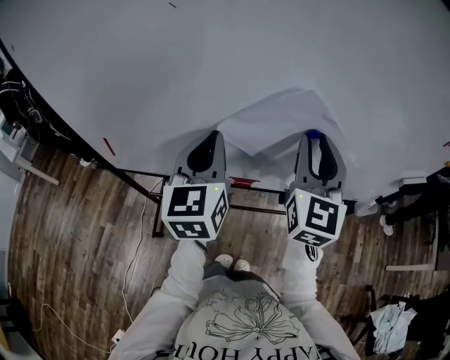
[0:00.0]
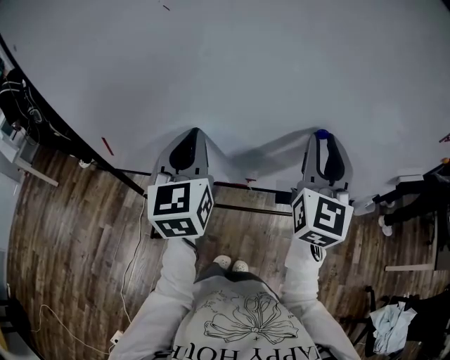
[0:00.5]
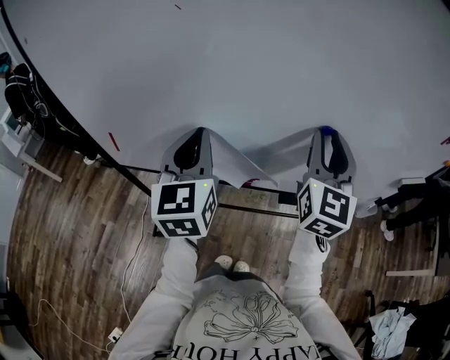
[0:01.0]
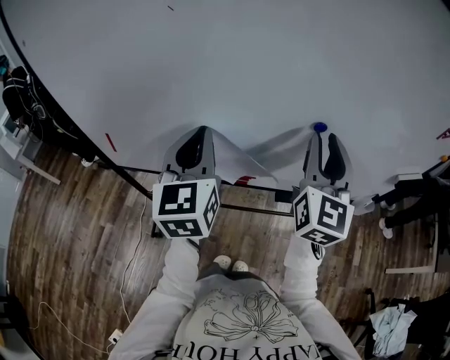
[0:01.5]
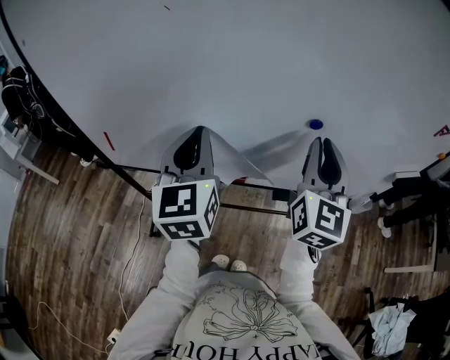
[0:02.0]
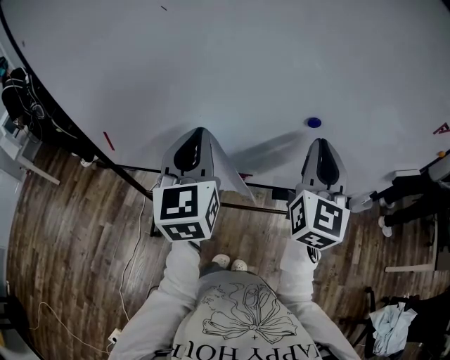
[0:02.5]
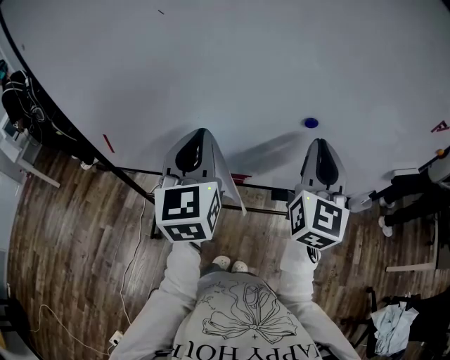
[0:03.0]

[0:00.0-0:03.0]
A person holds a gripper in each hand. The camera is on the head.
0:00.0 to 0:01.5: The grippers move only a little.
0:01.5 to 0:03.0: The right gripper closes up.

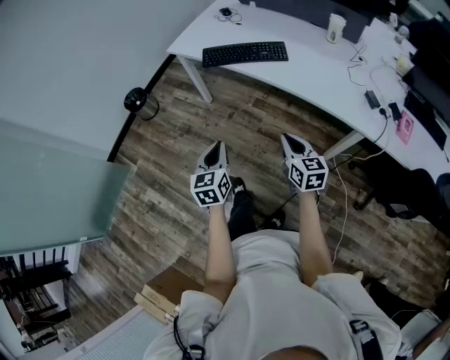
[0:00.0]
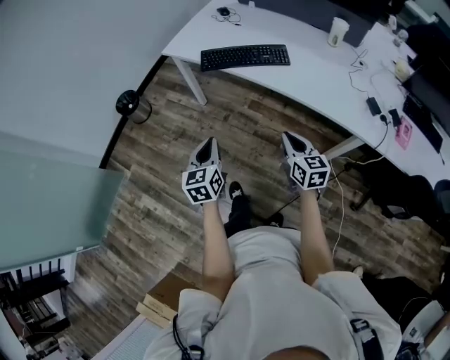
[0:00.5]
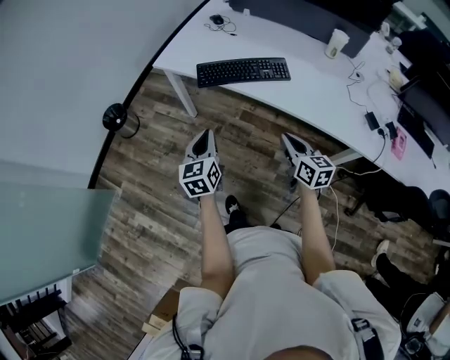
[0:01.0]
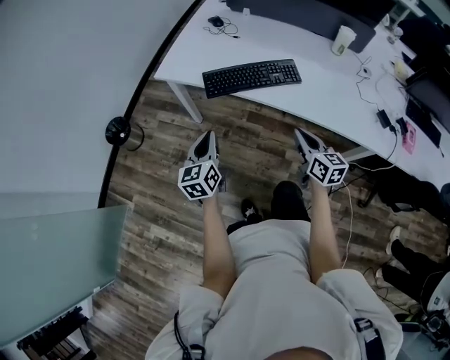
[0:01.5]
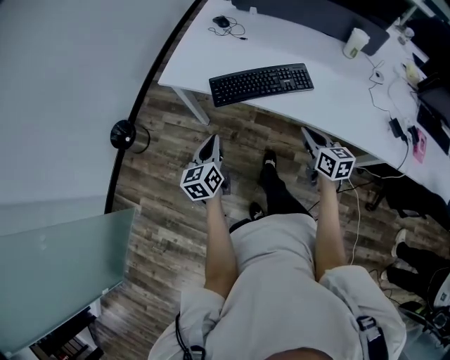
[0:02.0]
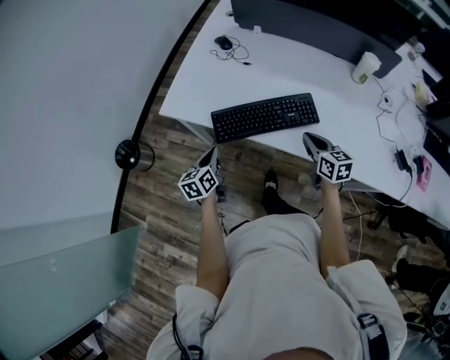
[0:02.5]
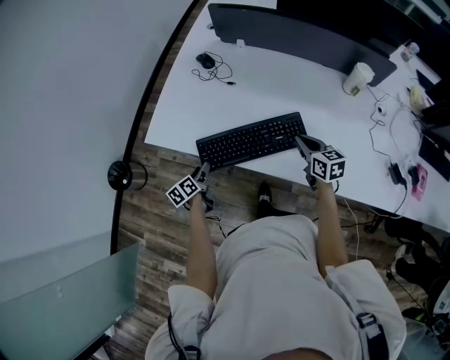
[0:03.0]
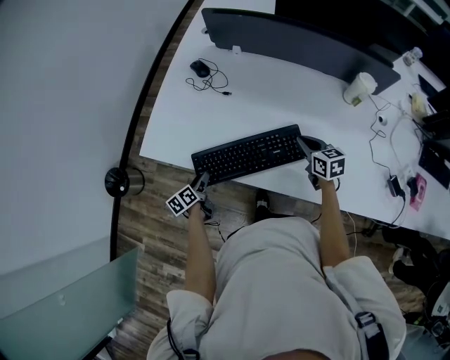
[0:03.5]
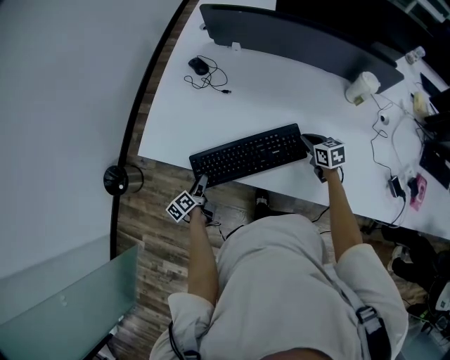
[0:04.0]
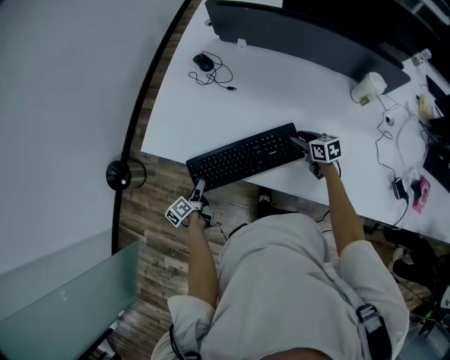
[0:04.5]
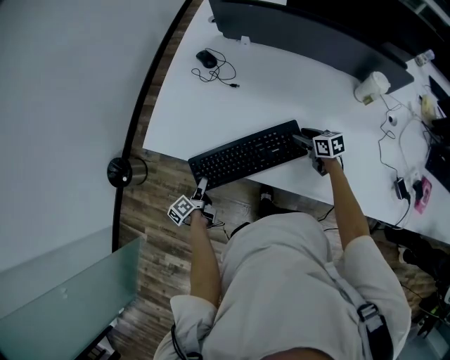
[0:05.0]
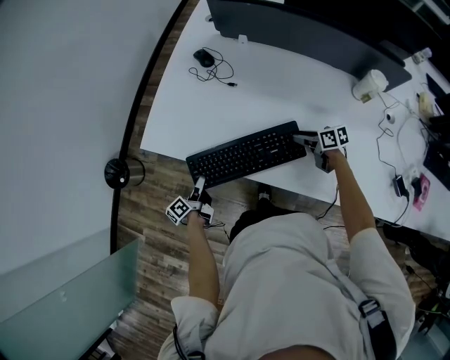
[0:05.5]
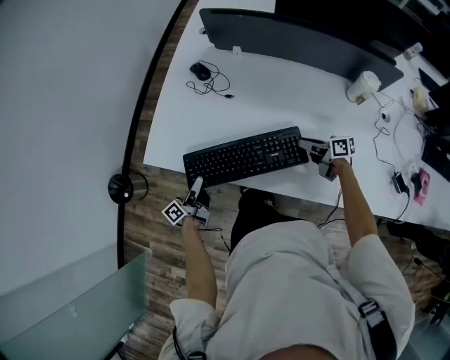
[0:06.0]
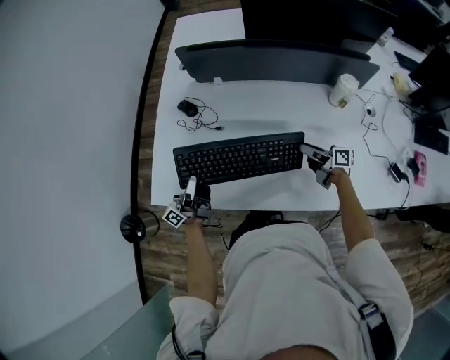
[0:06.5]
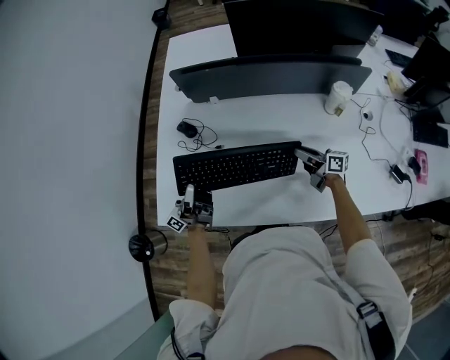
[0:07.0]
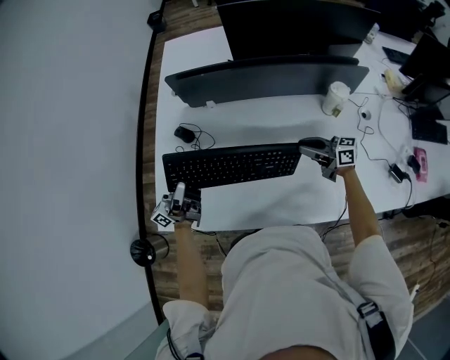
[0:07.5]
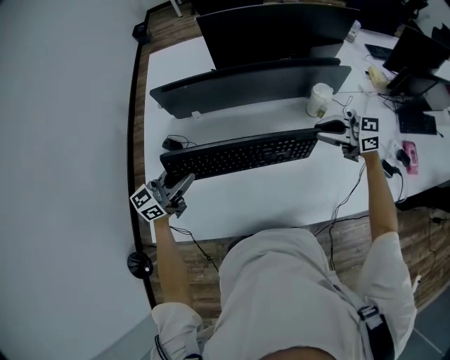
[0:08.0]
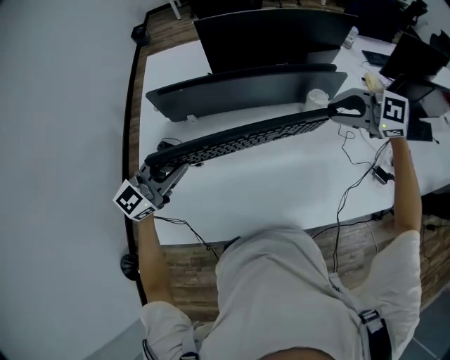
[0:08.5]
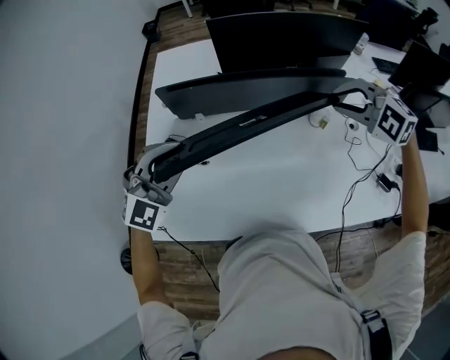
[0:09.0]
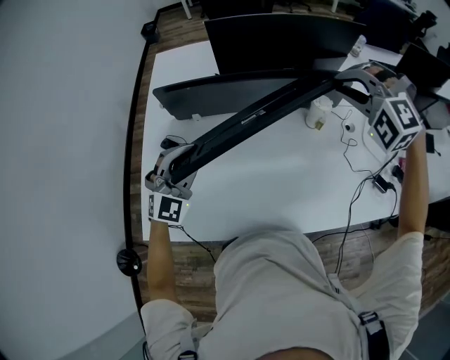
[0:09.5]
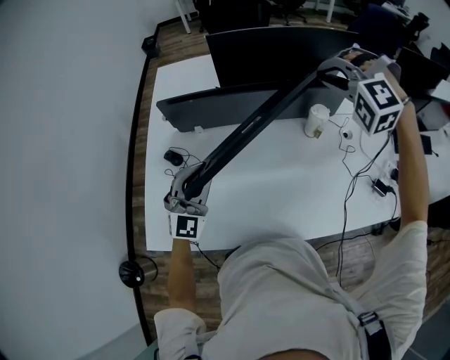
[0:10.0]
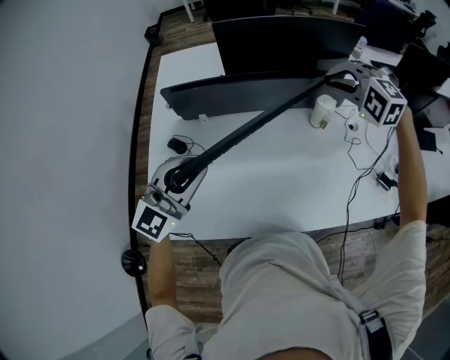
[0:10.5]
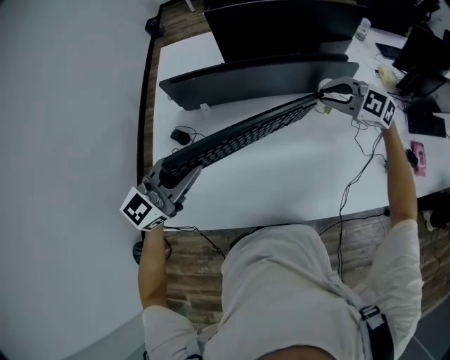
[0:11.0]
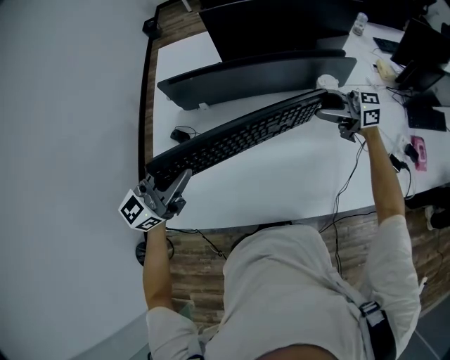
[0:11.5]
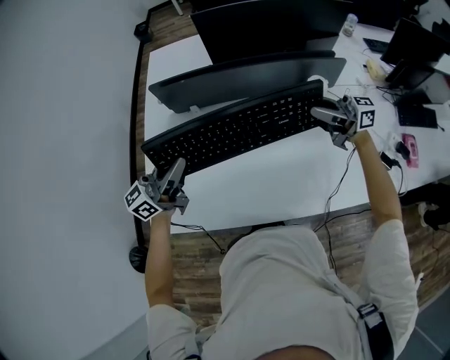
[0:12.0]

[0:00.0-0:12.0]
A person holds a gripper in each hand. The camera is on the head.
0:00.0 to 0:02.0: The grippers both shift forward by roughly 35 cm.
0:02.0 to 0:04.0: The right gripper is displaced forward, to the right and downward by about 35 cm, and rotates about 20 degrees. The left gripper shifts about 30 cm forward and downward, changes its angle by some 40 degrees, and opens.
0:04.0 to 0:06.0: The right gripper swivels some 40 degrees, and opens its fingers; the left gripper heads upward, covering approximately 10 cm, tilts its fingers some 30 degrees upward, and closes its fingers.
0:06.0 to 0:08.0: The left gripper changes place by some 35 cm, and rotates some 70 degrees; the right gripper heads upward, covering about 25 cm, and twists about 50 degrees counterclockwise, seen from behind.
0:08.0 to 0:10.0: The left gripper shifts by some 10 cm, and rolls clockwise, seen from behind, by some 60 degrees, while the right gripper travels upward by roughly 20 cm, and tilts its fingers some 30 degrees downward.
0:10.0 to 0:12.0: The right gripper moves downward, approximately 15 cm, tilts its fingers some 60 degrees upward, and opens and closes again. Meanwhile the left gripper shifts by roughly 5 cm, and twists some 60 degrees counterclockwise, seen from behind.

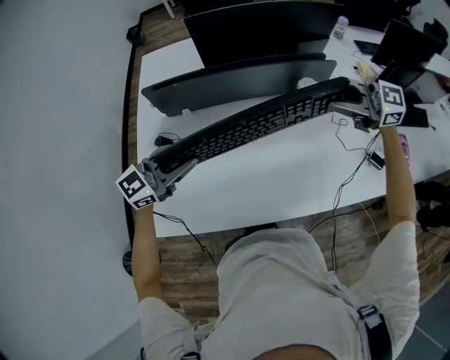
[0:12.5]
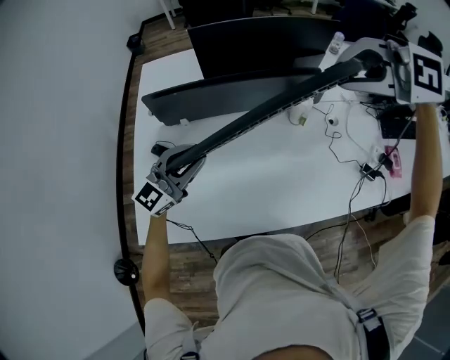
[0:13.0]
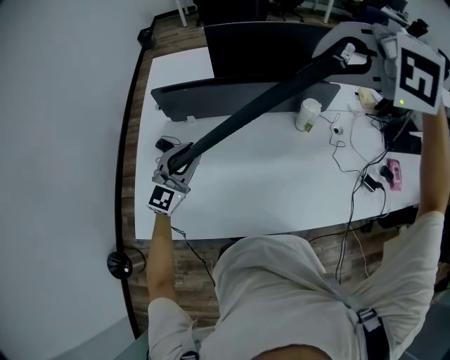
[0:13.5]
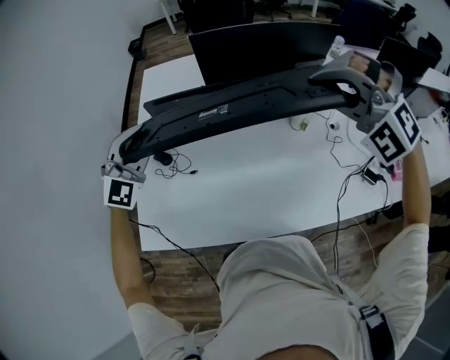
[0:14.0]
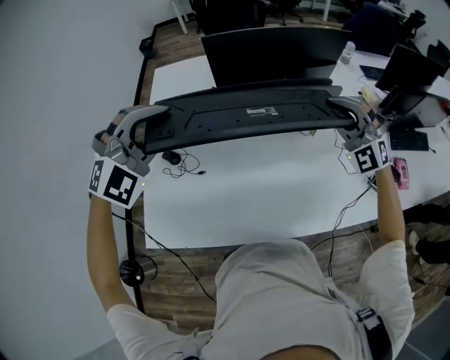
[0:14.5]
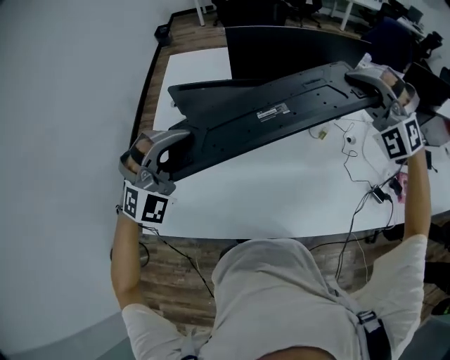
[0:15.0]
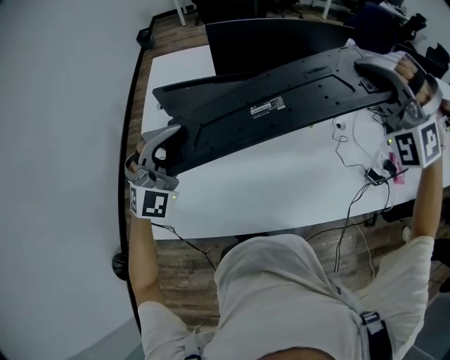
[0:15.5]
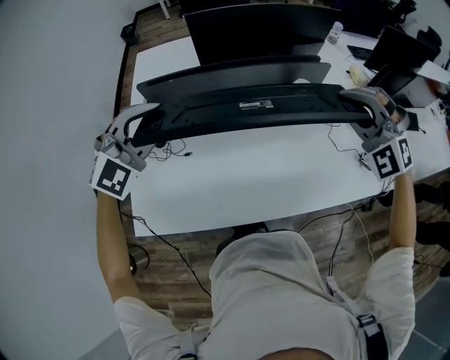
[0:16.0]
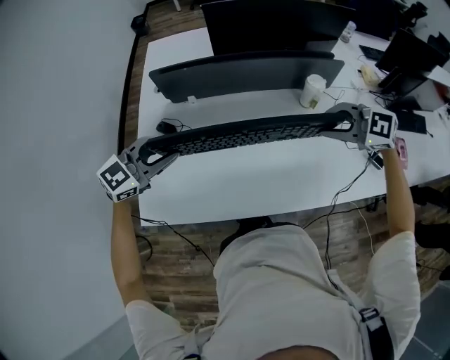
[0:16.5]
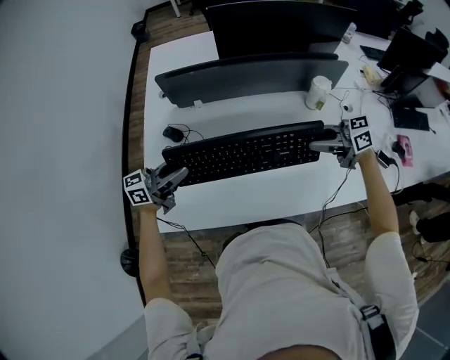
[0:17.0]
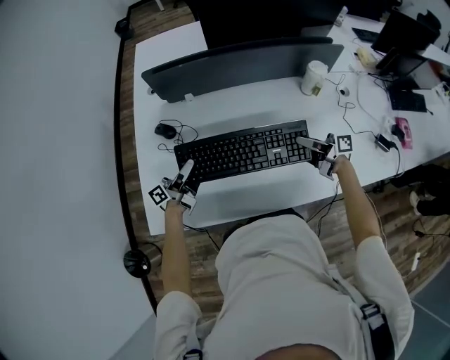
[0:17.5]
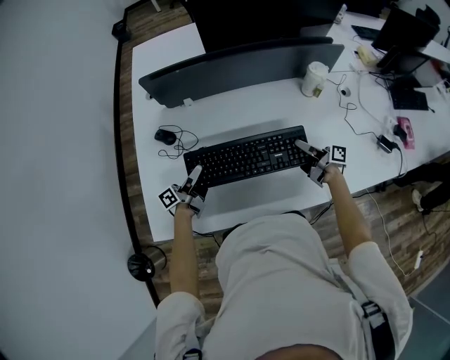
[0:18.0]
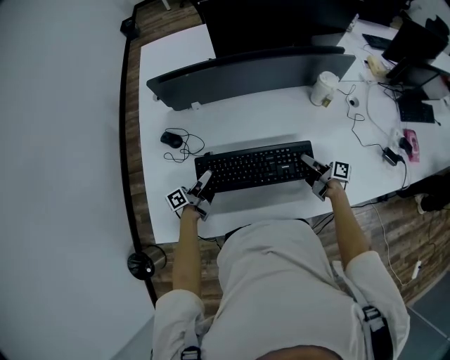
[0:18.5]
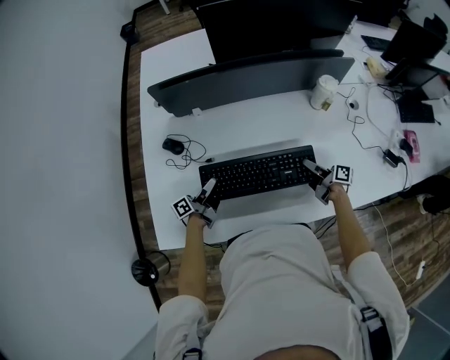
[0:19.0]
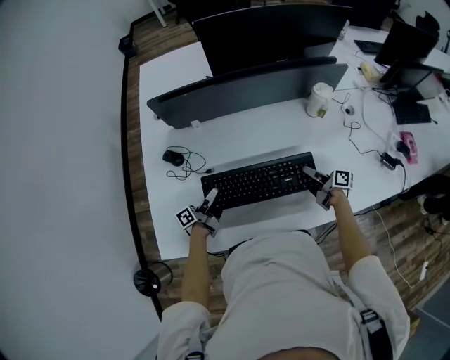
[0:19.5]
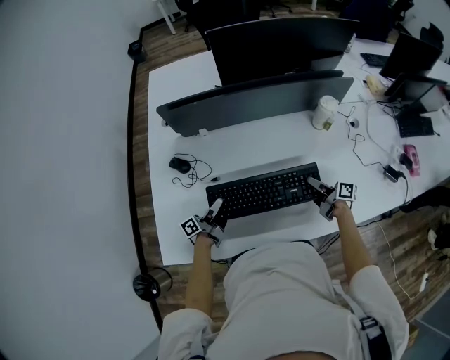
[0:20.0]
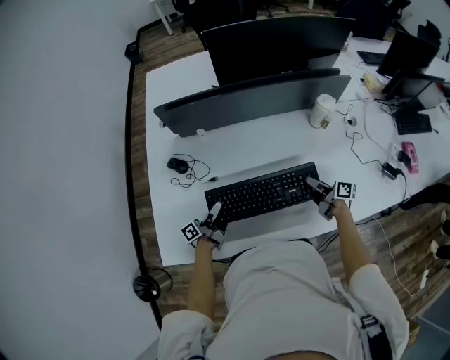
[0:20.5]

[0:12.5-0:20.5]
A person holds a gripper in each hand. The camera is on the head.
0:12.5 to 0:14.5: The left gripper travels upward by some 15 cm, and rolls clockwise, seen from behind, by approximately 60 degrees, while the right gripper moves about 15 cm upward and comes back, and swivels some 80 degrees.
0:14.5 to 0:16.5: The right gripper changes place by approximately 15 cm, and turns by about 60 degrees. Meanwhile the left gripper heads downward, covering about 15 cm, and twists some 50 degrees counterclockwise, seen from behind.
0:16.5 to 0:18.5: The grippers both shift downward by roughly 30 cm. The right gripper twists some 100 degrees clockwise, seen from behind. The left gripper rolls counterclockwise, seen from behind, by roughly 90 degrees.
0:18.5 to 0:20.5: There are only small adjustments of the grippers.

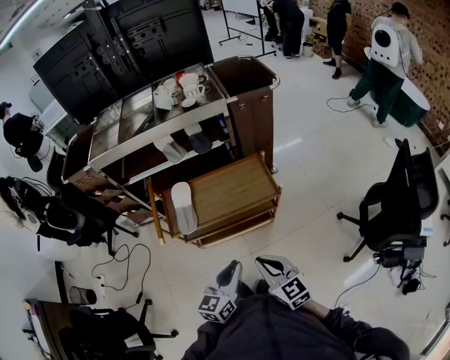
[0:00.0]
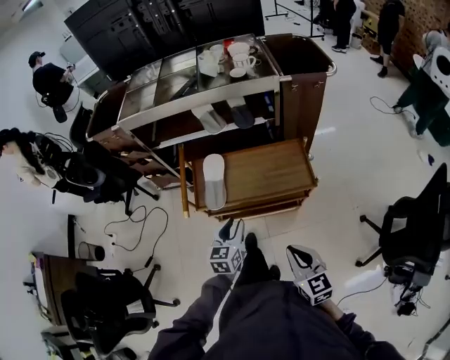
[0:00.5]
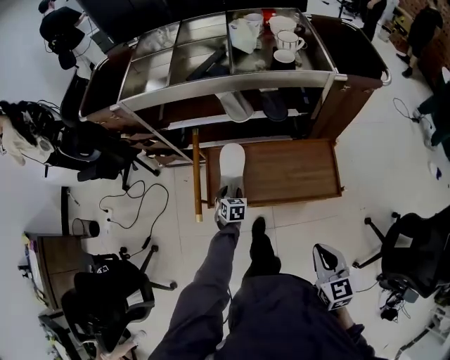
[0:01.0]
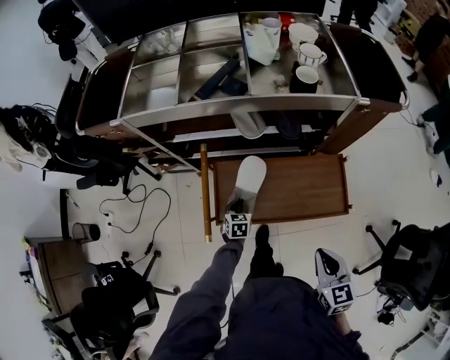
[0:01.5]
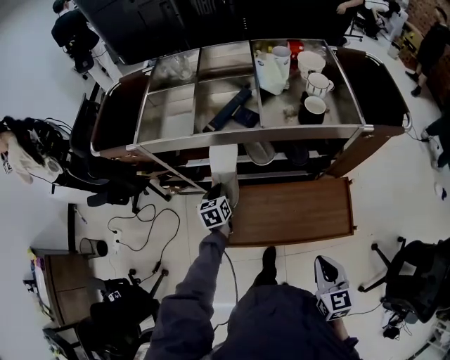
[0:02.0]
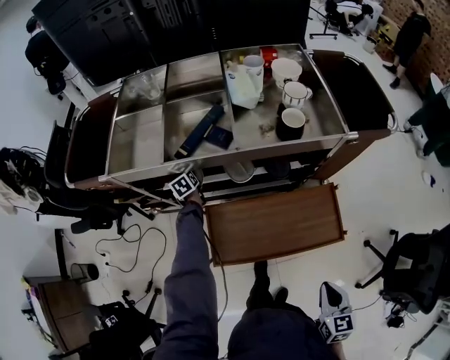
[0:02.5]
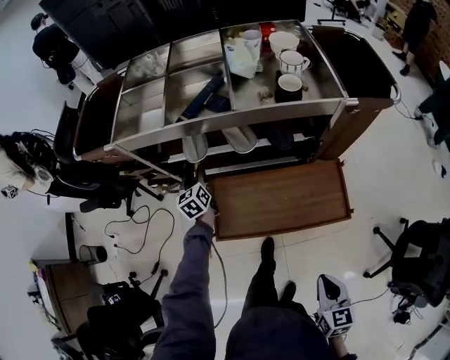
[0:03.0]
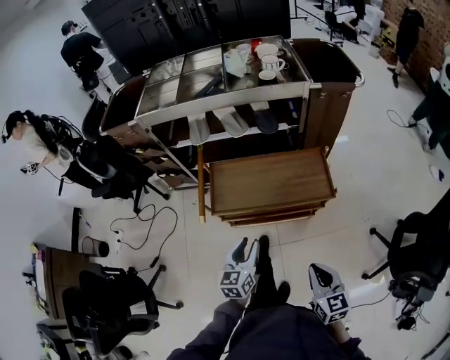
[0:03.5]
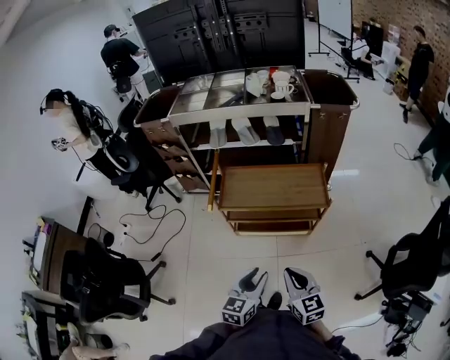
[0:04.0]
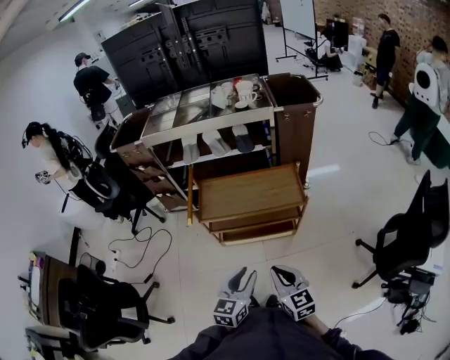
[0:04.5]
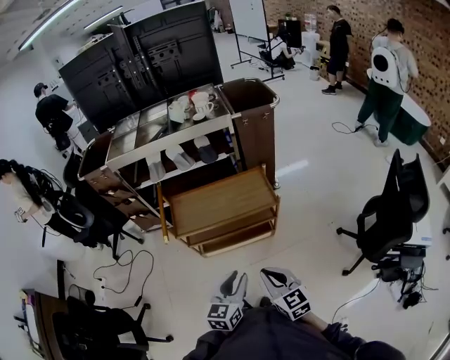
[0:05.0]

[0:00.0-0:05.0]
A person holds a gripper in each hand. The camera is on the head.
0:00.0 to 0:02.5: The right gripper goes some 25 cm forward, and rotates roughly 30 degrees. The left gripper heads forward and to the left, covering about 80 cm, changes its angle by approximately 50 degrees, and opens, then closes again.
0:02.5 to 0:05.0: The left gripper shifts approximately 90 cm backward and to the right, changes its angle by approximately 50 degrees, and opens up. The right gripper shifts about 30 cm backward, and turns by about 30 degrees.
